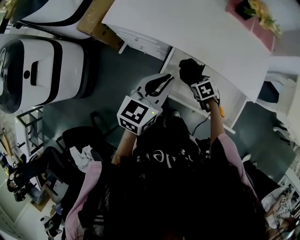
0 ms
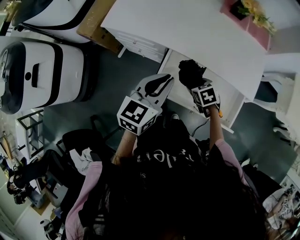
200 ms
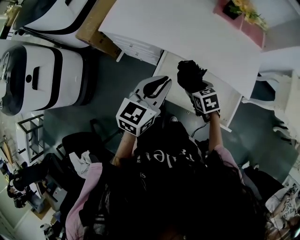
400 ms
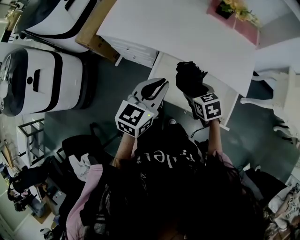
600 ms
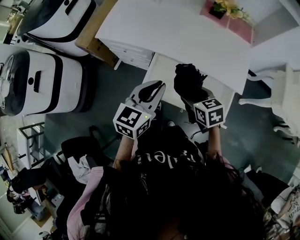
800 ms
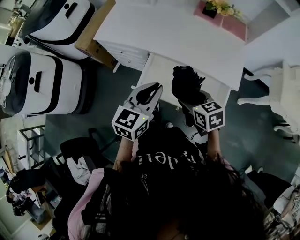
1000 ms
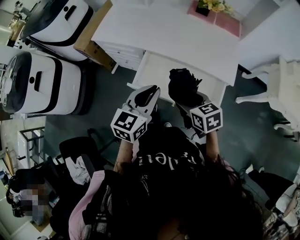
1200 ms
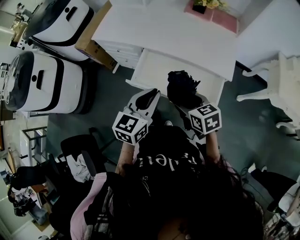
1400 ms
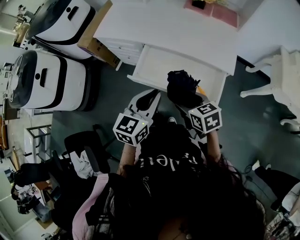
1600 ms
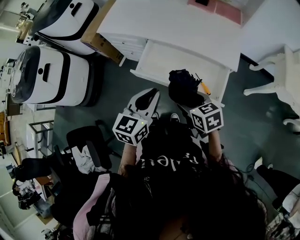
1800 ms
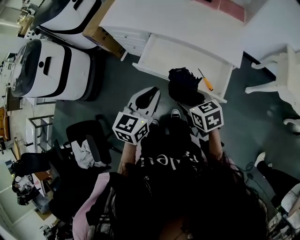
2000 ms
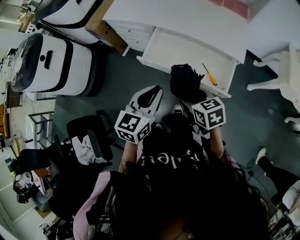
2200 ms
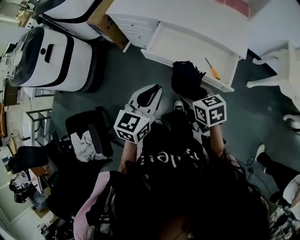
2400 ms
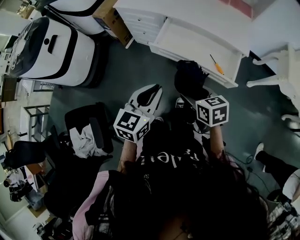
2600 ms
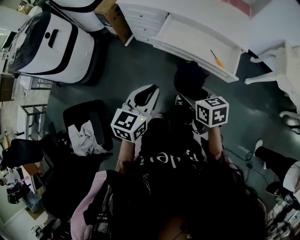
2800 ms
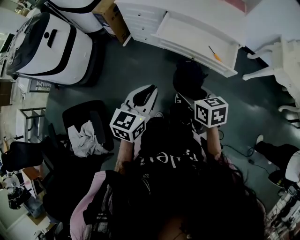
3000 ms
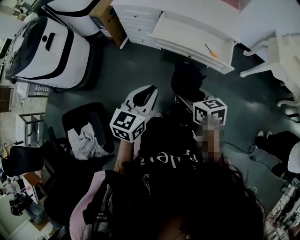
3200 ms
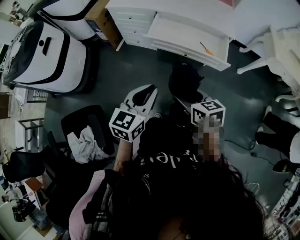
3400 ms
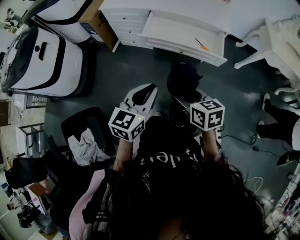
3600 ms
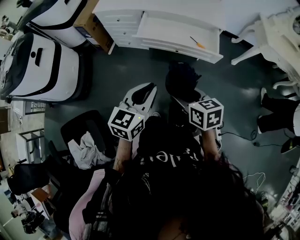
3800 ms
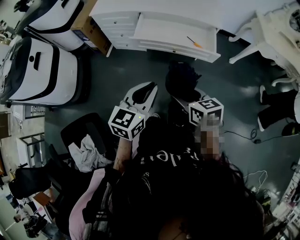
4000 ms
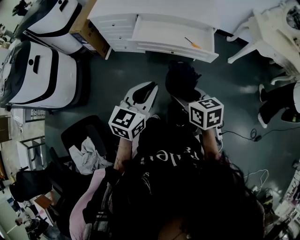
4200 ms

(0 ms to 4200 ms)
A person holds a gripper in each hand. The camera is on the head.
0 ms - 1400 ms: The left gripper goes roughly 15 cm backward and to the right. The right gripper goes roughly 25 cm upward and backward, and tilts its fingers about 30 degrees upward.
1400 ms - 2800 ms: The two grippers go about 20 cm backward and to the left.
2800 ms - 4200 ms: The left gripper changes place by approximately 5 cm. The right gripper travels backward by some 10 cm.

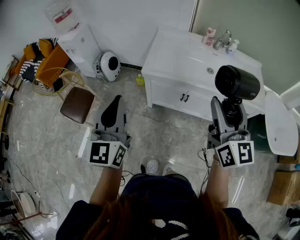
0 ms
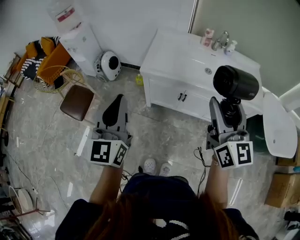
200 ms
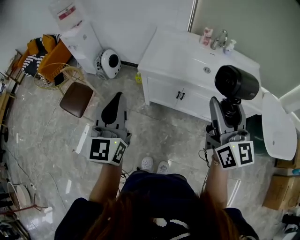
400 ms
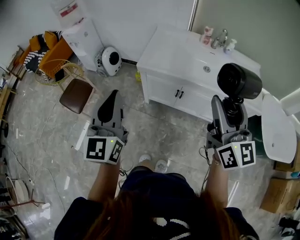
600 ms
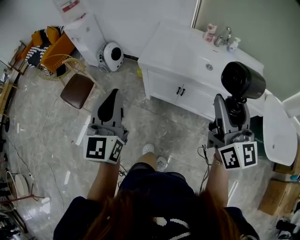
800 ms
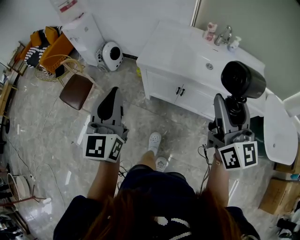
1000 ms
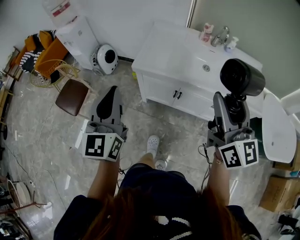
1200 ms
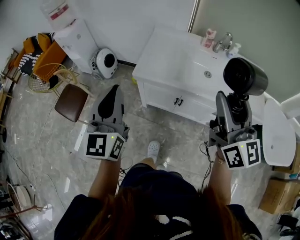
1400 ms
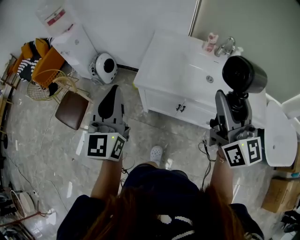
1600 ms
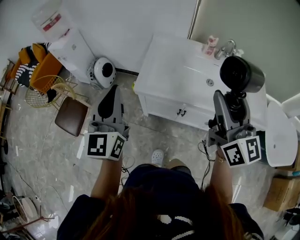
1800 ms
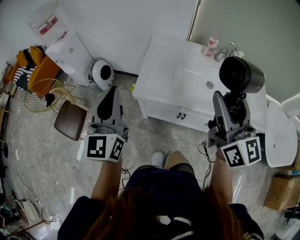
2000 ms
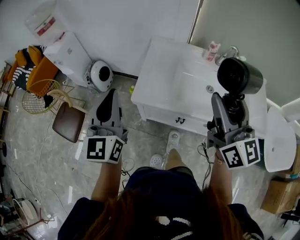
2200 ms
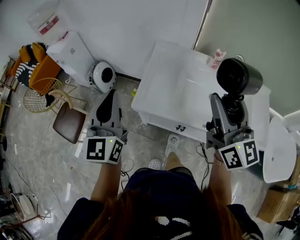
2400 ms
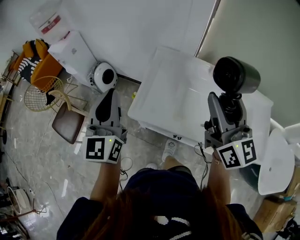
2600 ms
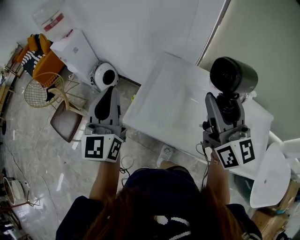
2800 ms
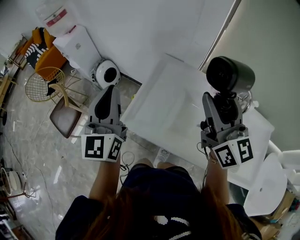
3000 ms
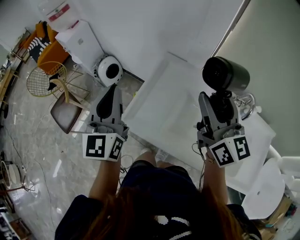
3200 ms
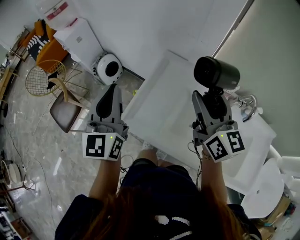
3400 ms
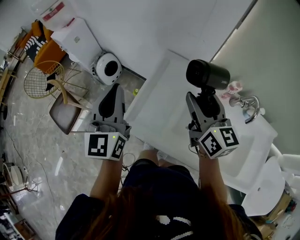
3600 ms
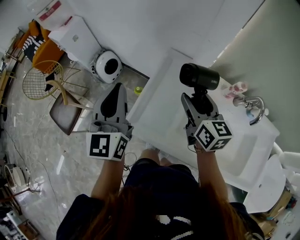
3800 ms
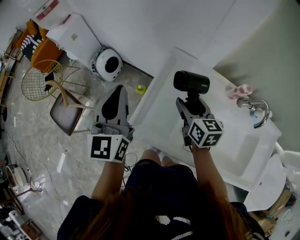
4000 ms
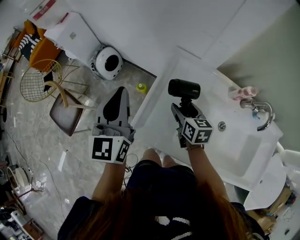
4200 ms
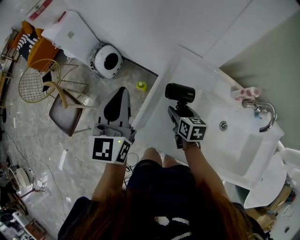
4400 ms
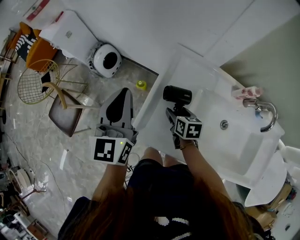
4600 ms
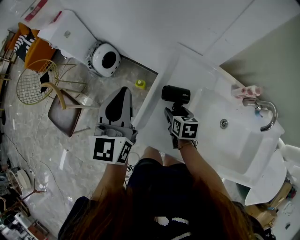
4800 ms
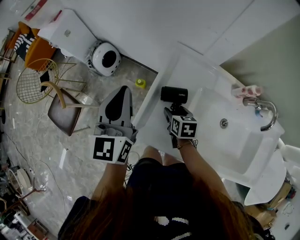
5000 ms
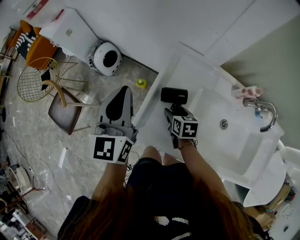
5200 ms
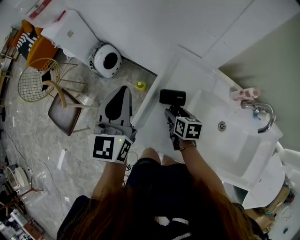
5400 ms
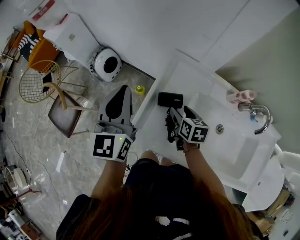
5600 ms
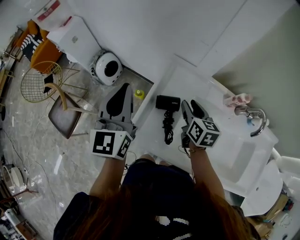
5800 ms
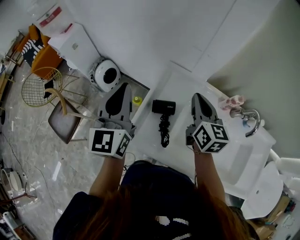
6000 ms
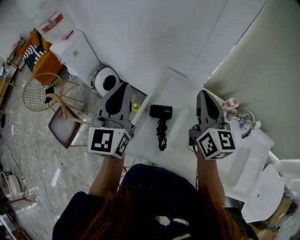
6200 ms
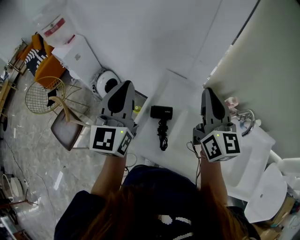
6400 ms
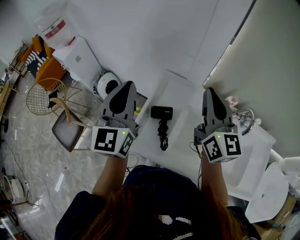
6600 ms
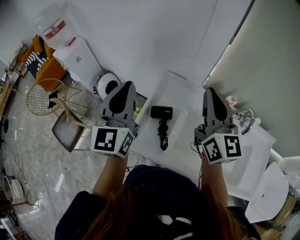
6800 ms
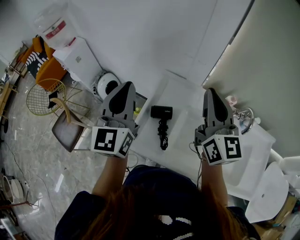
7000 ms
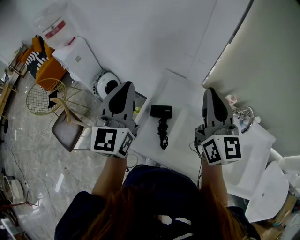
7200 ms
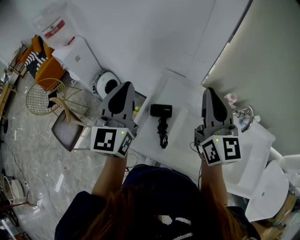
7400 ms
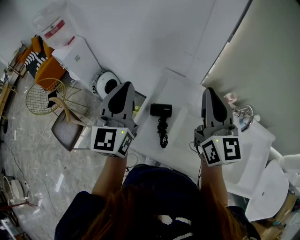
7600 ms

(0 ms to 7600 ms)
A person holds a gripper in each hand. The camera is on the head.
0 ms - 1600 ms: The two grippers go approximately 15 cm forward.
1600 ms - 3000 ms: The two grippers go about 35 cm forward.
3000 ms - 4600 ms: The right gripper shifts approximately 40 cm downward, and angles its fingers downward, by some 60 degrees; the left gripper moves forward and downward, approximately 20 cm.
4600 ms - 6000 ms: The right gripper travels upward and to the right by approximately 25 cm, angles its fingers upward, by approximately 30 degrees, and closes up. The left gripper shifts about 5 cm upward.
6000 ms - 7600 ms: The right gripper shifts about 20 cm upward and backward, and changes its angle by some 20 degrees; the left gripper moves upward, some 5 cm.

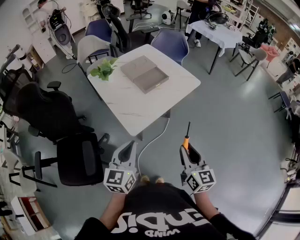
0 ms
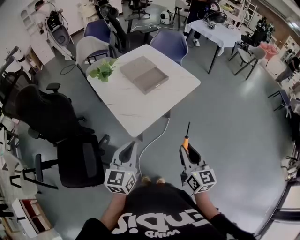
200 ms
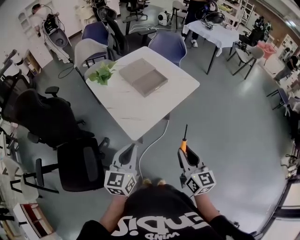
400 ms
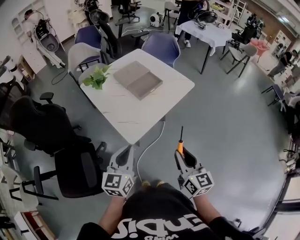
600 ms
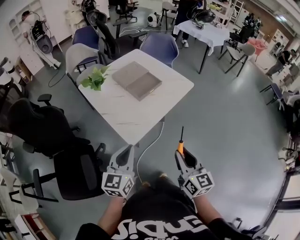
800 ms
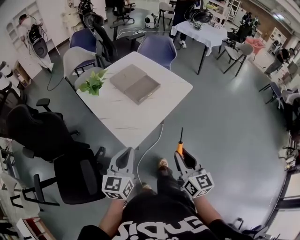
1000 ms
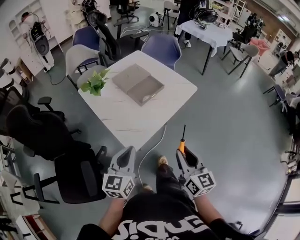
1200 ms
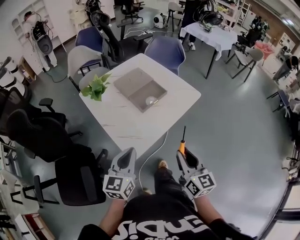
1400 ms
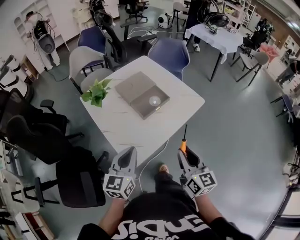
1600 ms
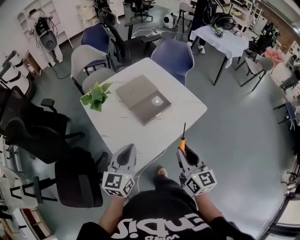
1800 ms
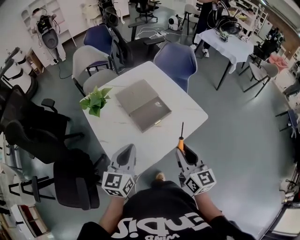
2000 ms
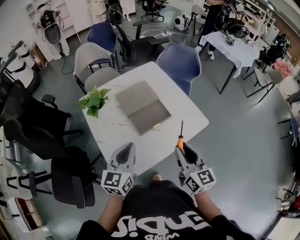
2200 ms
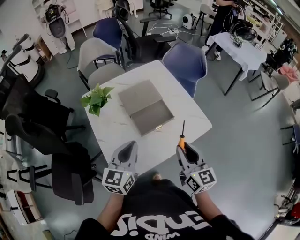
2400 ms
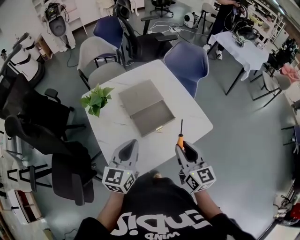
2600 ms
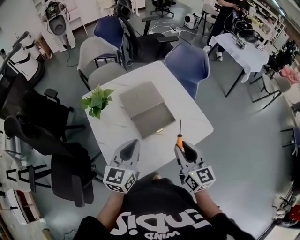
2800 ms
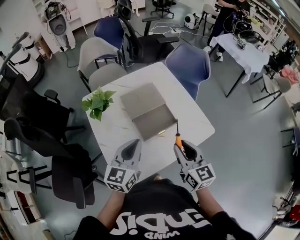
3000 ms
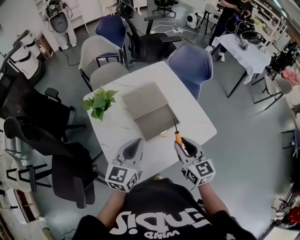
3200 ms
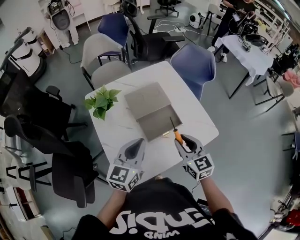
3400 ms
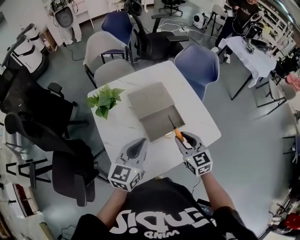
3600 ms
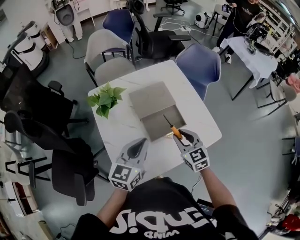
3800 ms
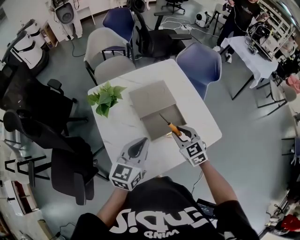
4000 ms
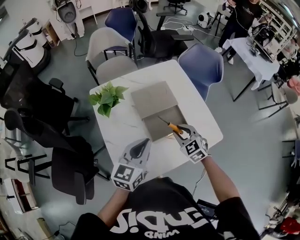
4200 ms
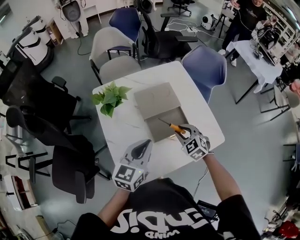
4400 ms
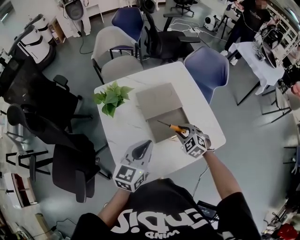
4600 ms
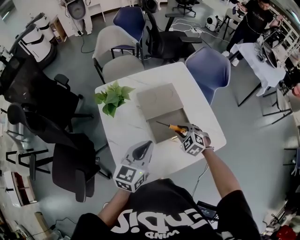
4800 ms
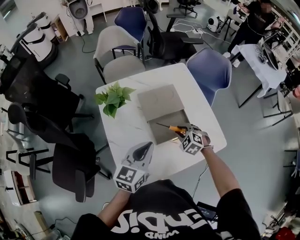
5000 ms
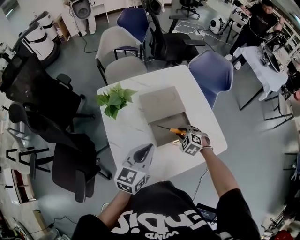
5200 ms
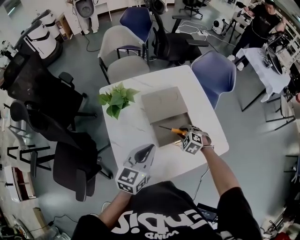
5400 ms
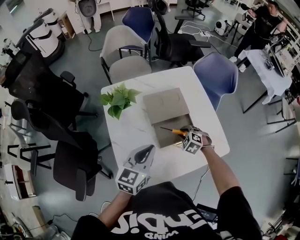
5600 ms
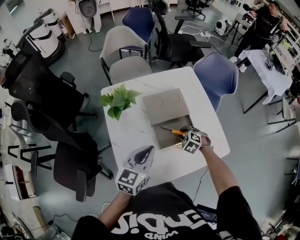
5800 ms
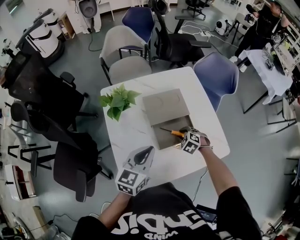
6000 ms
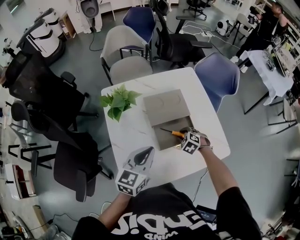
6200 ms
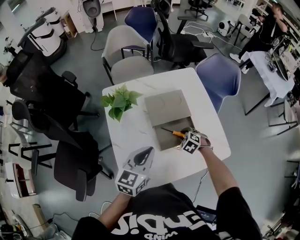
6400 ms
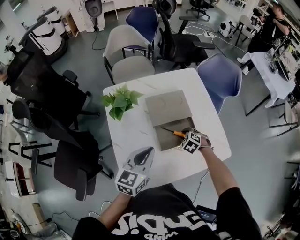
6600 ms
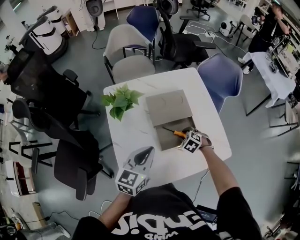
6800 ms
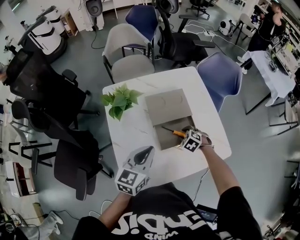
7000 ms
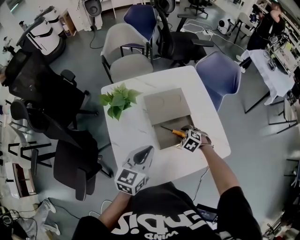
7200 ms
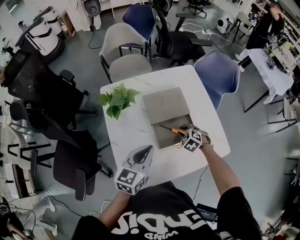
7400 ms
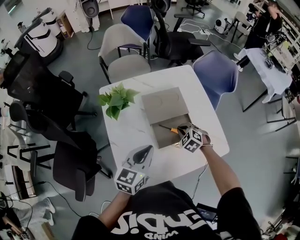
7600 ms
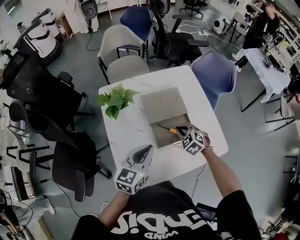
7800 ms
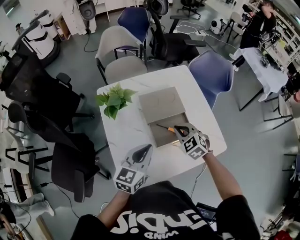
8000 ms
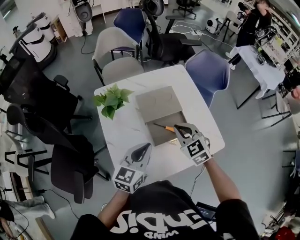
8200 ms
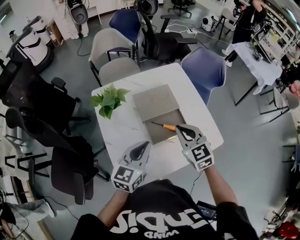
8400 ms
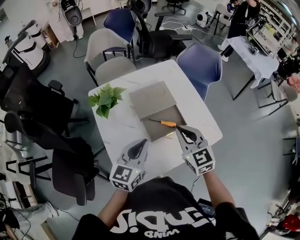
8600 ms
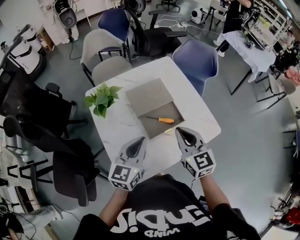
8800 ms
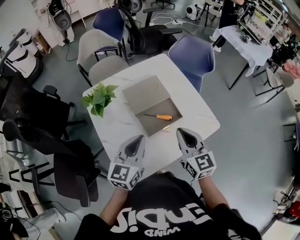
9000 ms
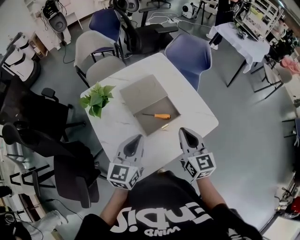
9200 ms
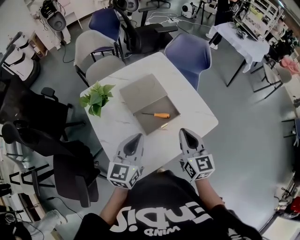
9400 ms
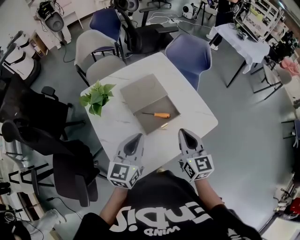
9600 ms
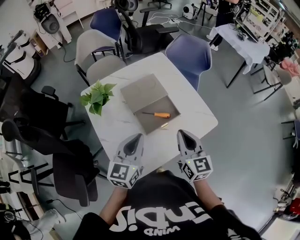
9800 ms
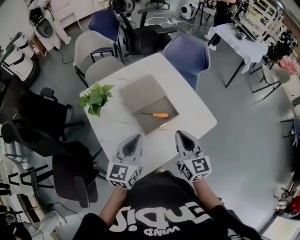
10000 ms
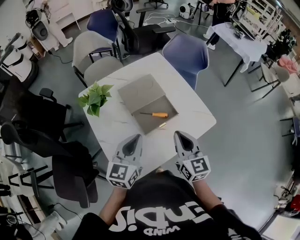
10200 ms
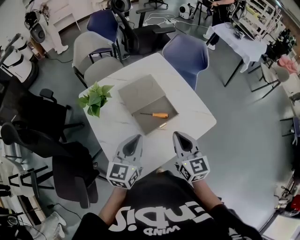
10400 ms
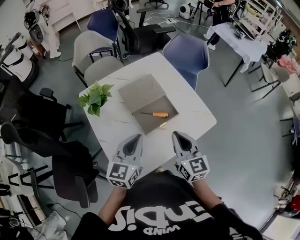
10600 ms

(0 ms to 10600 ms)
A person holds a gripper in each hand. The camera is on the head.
0 ms - 1600 ms: The two grippers go some 20 cm forward.
1600 ms - 3000 ms: Both grippers move forward, some 20 cm.
3000 ms - 4600 ms: The right gripper travels downward and forward by some 20 cm, and tips its fingers downward by some 40 degrees.
4600 ms - 6000 ms: The right gripper moves downward, approximately 10 cm.
6000 ms - 7600 ms: There are only small adjustments of the grippers.
7600 ms - 9000 ms: The right gripper travels upward and backward by some 25 cm, and points its fingers roughly 40 degrees further upward.
9000 ms - 10600 ms: The grippers make only small movements.

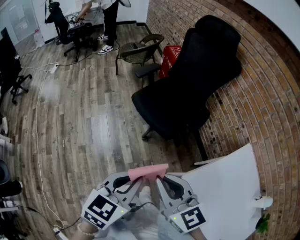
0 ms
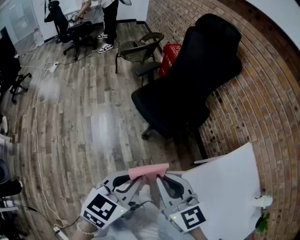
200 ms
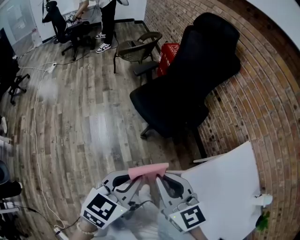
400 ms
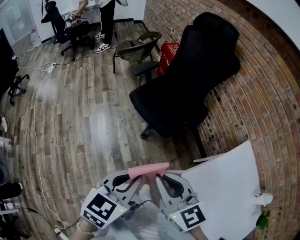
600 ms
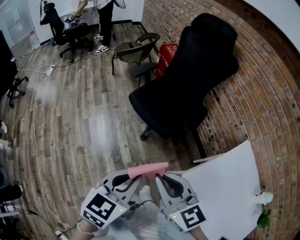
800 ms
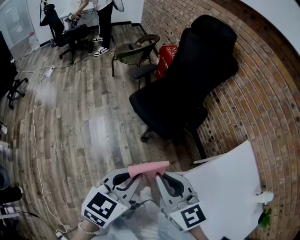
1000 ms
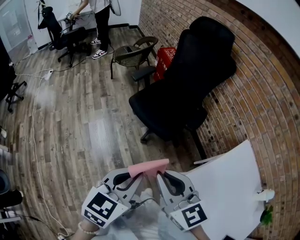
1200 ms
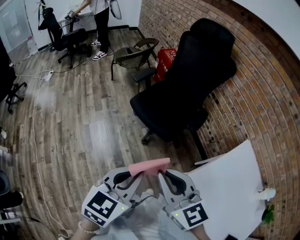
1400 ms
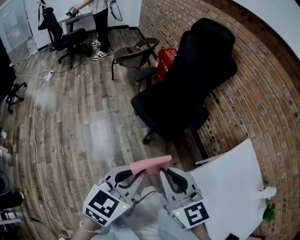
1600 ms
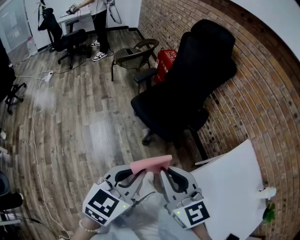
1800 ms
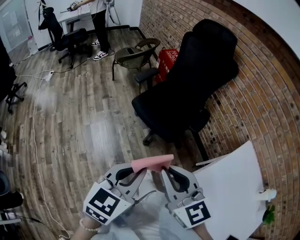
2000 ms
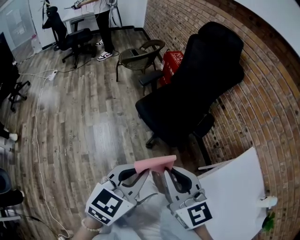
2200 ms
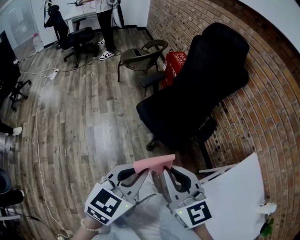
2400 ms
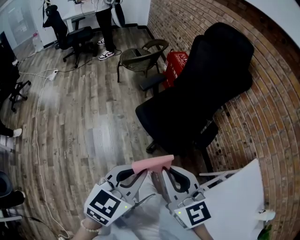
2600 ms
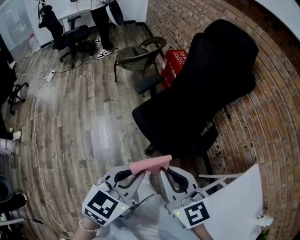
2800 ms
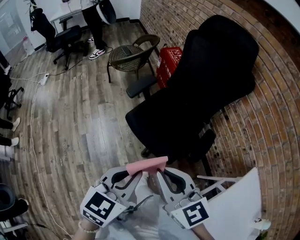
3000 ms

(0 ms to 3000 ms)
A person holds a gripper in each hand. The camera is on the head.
0 ms - 1600 ms: The left gripper travels to the left by about 5 cm. The right gripper shifts by some 5 cm.
1600 ms - 3000 ms: The grippers both shift forward by approximately 30 cm.
